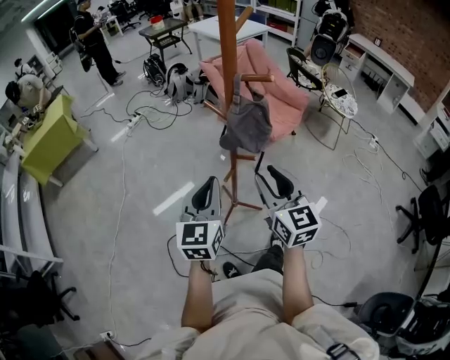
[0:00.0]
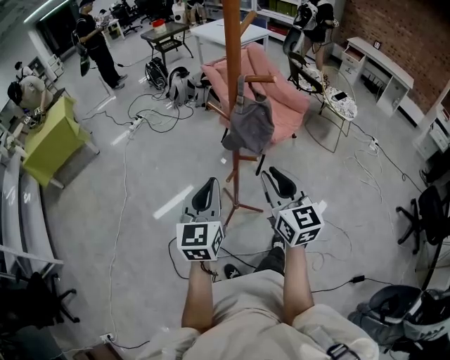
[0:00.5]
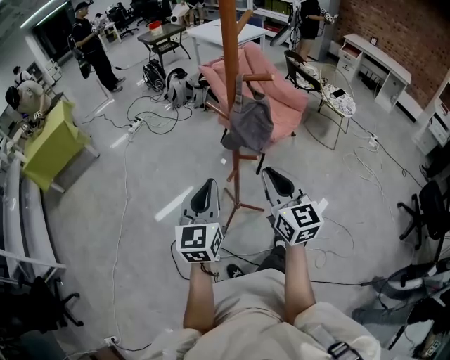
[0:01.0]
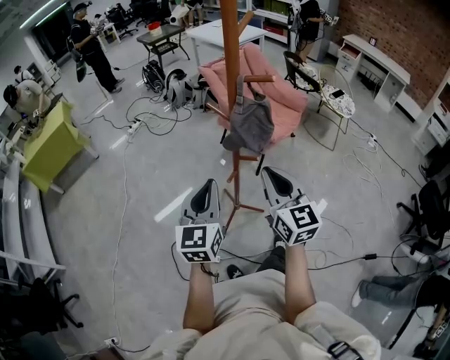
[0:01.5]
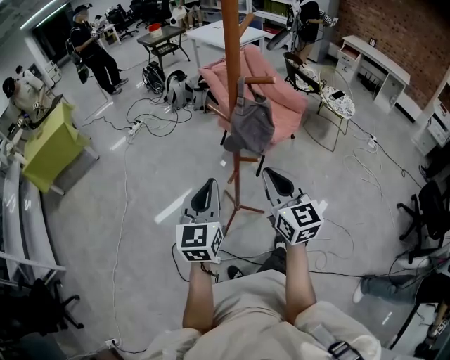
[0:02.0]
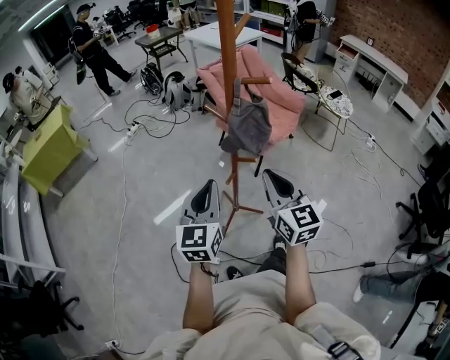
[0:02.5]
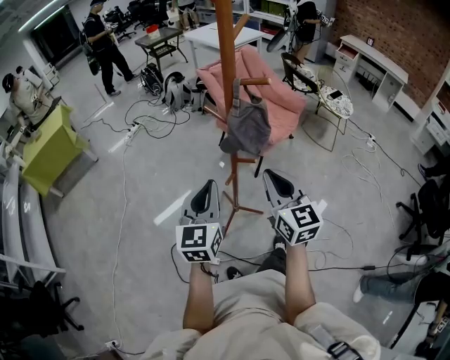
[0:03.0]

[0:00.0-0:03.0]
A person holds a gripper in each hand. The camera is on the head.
0:00.0 to 0:01.5: The right gripper closes its fingers.
0:01.5 to 0:03.0: Both grippers stay about where they are.

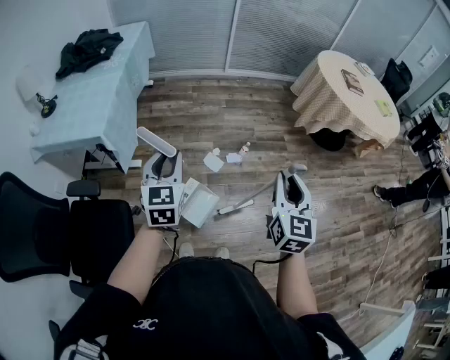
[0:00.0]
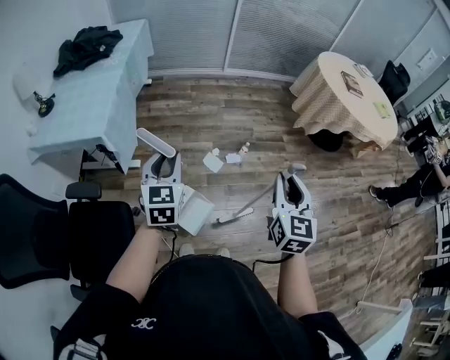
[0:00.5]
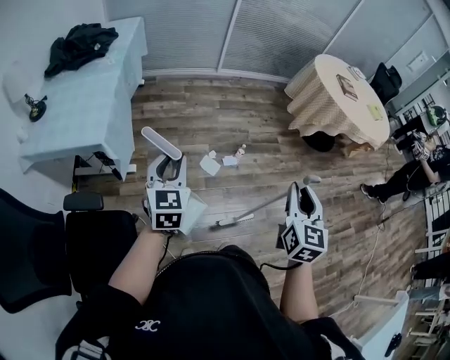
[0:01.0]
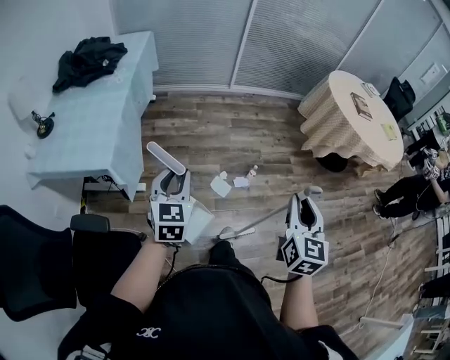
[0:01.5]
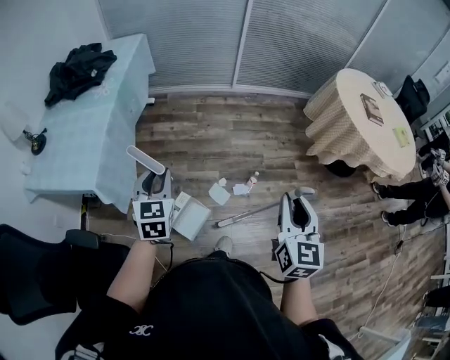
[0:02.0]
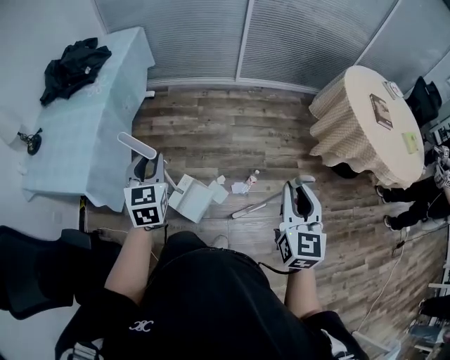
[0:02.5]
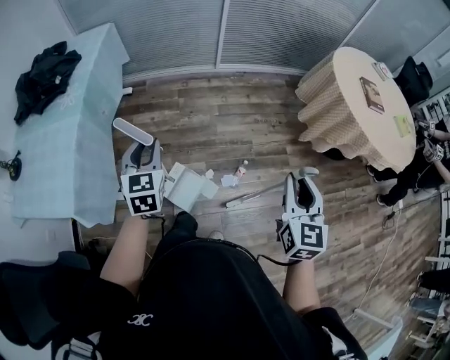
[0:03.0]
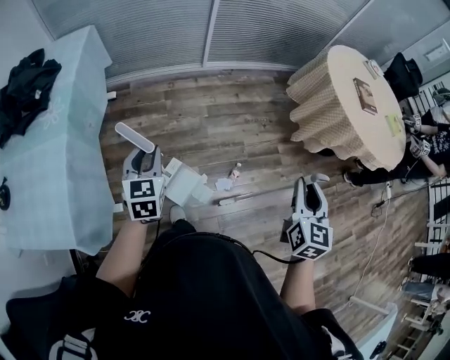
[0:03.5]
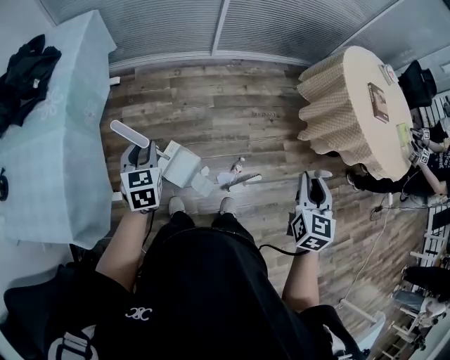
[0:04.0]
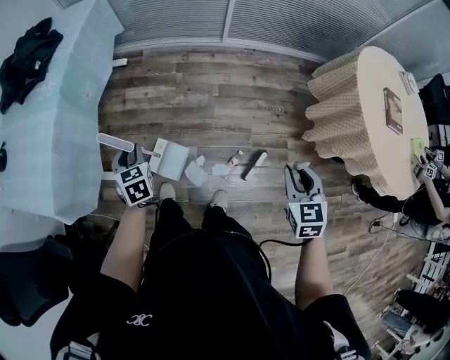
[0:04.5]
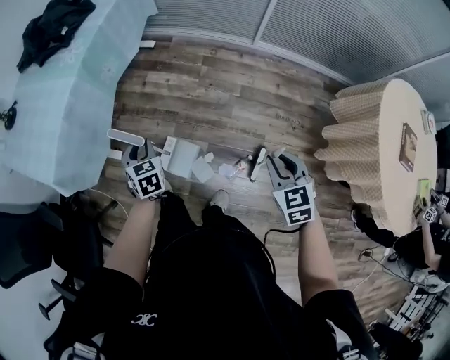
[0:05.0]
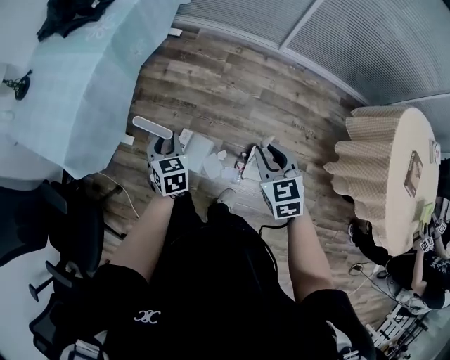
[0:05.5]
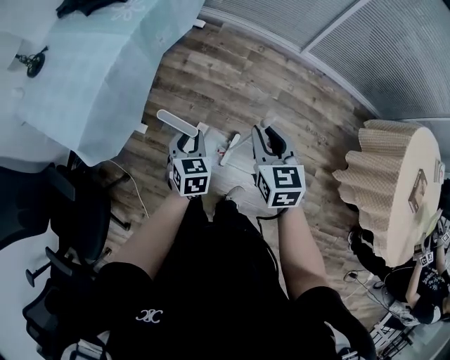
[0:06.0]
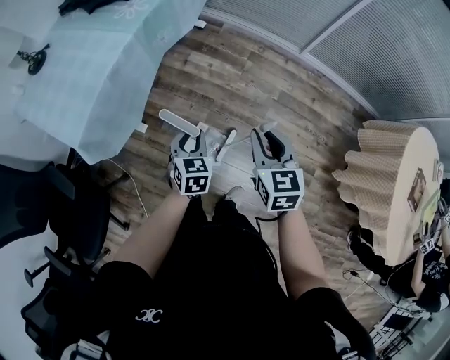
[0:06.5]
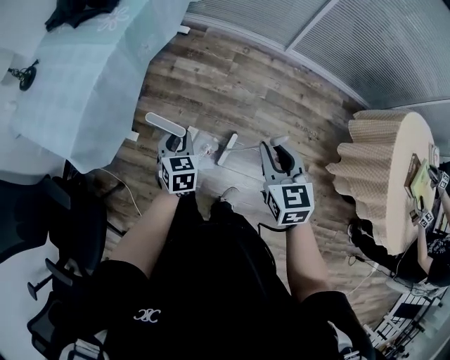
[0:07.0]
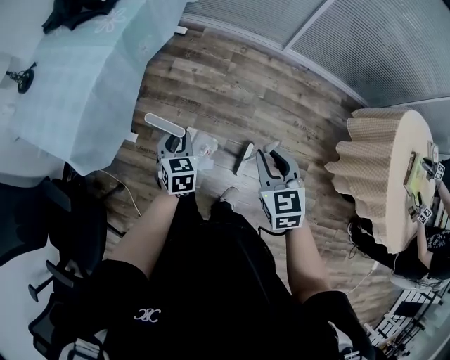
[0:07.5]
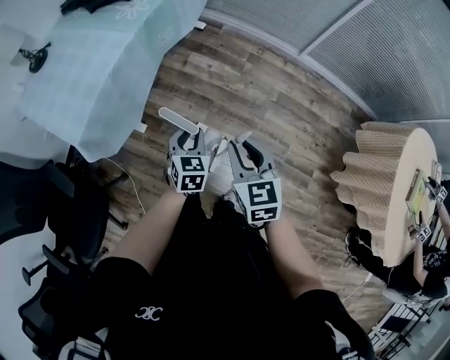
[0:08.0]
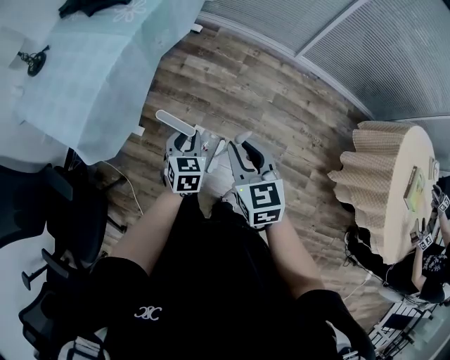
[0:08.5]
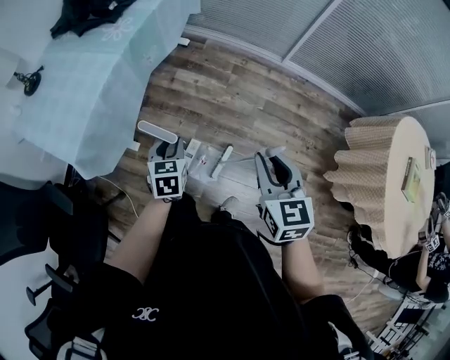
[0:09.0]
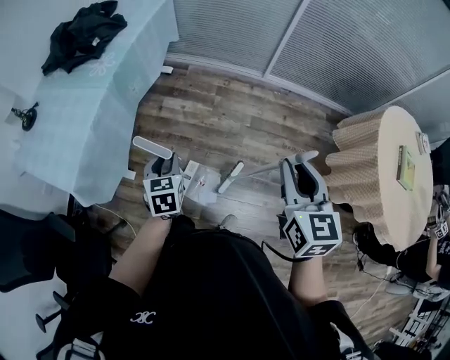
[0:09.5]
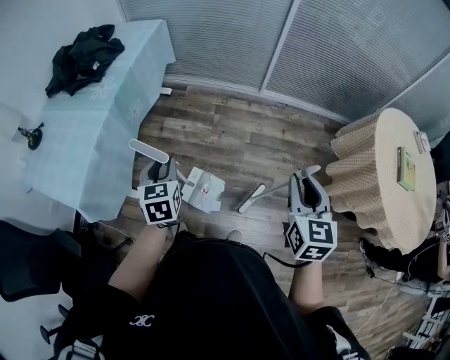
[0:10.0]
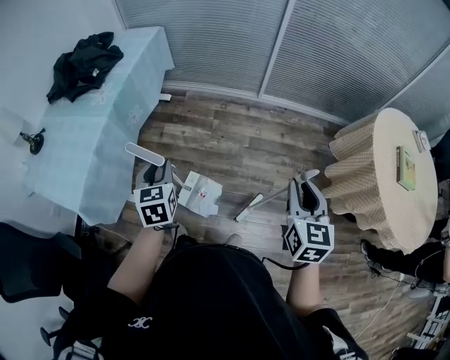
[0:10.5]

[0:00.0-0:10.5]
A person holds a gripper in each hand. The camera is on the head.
0:00.0 to 0:02.0: Both grippers move forward, approximately 20 cm.
0:02.0 to 0:04.0: The grippers both shift forward by roughly 30 cm. The right gripper rotates roughly 20 degrees.
0:04.0 to 0:06.5: The left gripper travels downward by approximately 10 cm, and turns by some 20 degrees. Meanwhile the right gripper ends up some 35 cm from where it was, and swivels approximately 50 degrees.
0:06.5 to 0:08.5: The right gripper goes some 5 cm to the left.
0:08.5 to 0:10.5: The right gripper travels to the right and upward by about 30 cm, and swivels roughly 40 degrees. Meanwhile the left gripper shifts approximately 15 cm upward.

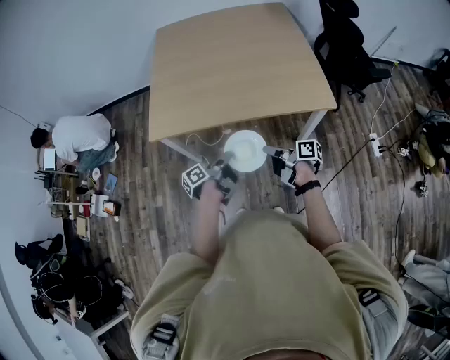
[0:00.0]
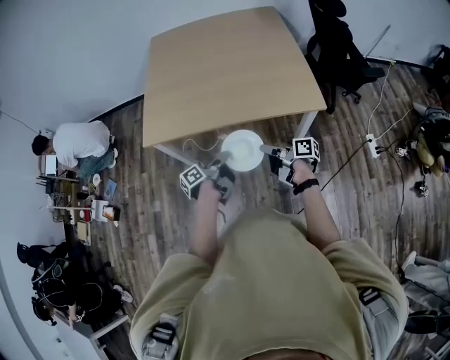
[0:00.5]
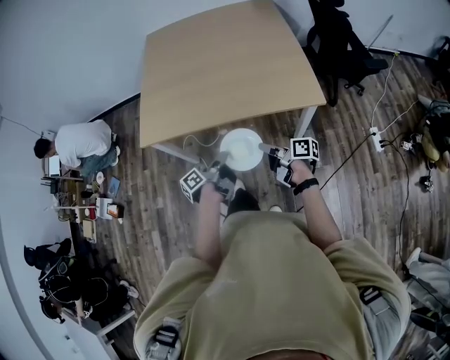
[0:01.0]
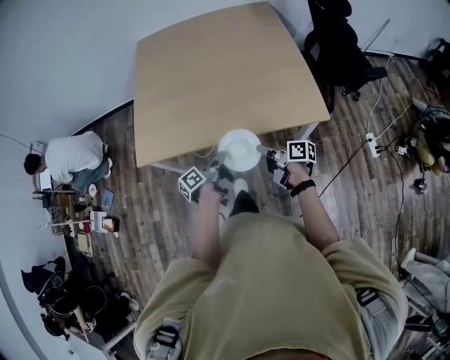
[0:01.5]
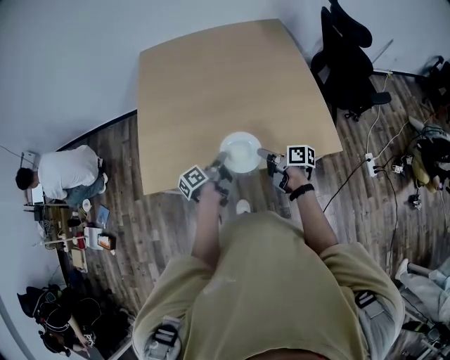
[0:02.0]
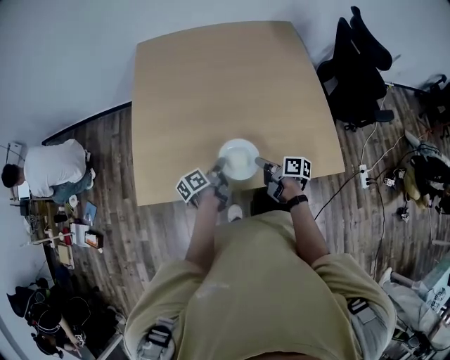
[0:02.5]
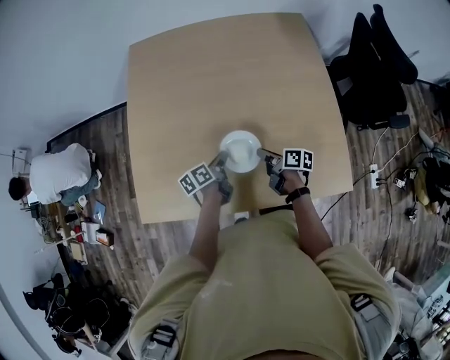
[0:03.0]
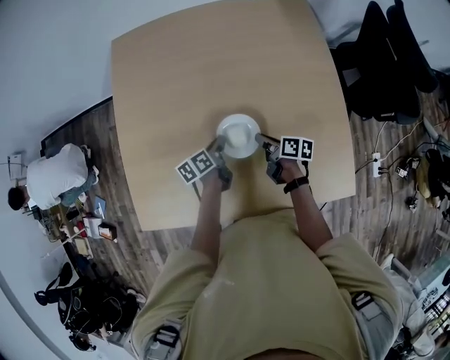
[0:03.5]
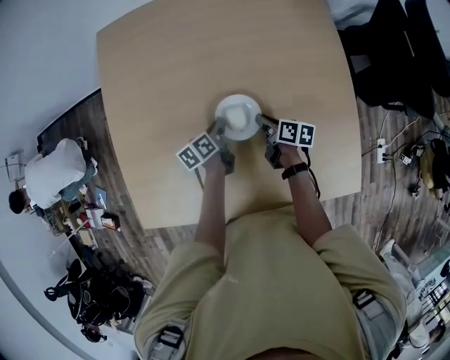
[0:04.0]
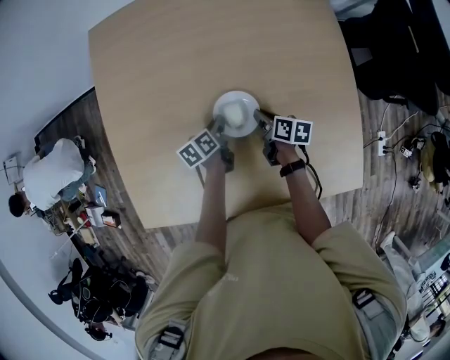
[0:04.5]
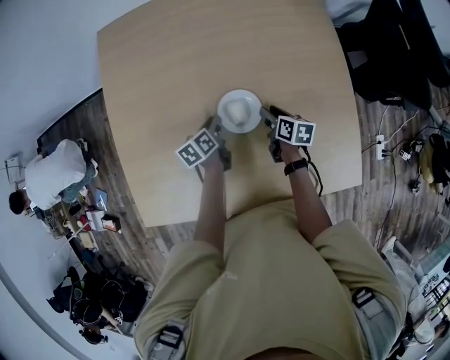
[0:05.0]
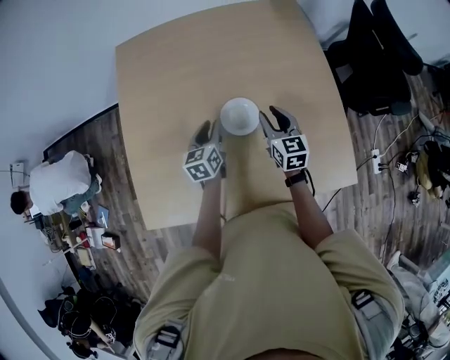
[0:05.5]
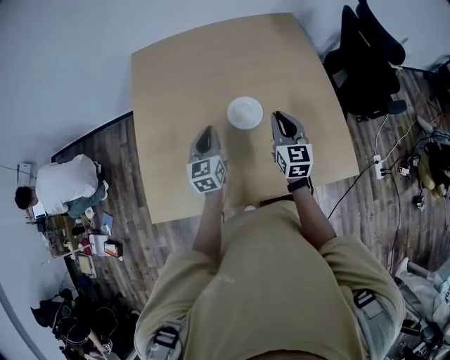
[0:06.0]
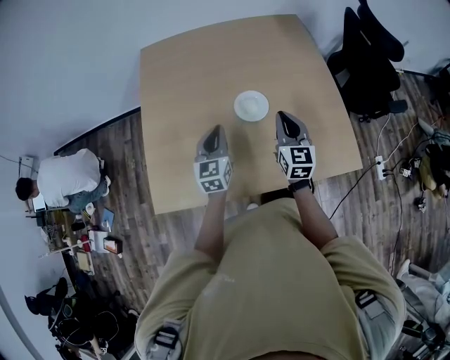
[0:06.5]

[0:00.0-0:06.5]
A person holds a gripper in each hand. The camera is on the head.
0:00.0 to 0:02.0: The two grippers go approximately 25 cm forward.
0:02.0 to 0:04.5: The left gripper is displaced forward and downward by approximately 40 cm, and rotates about 40 degrees, while the right gripper goes approximately 35 cm forward, and rotates approximately 20 degrees.
0:04.5 to 0:06.5: Both grippers travel together upward and backward, some 30 cm. The left gripper twists roughly 50 degrees clockwise, seen from behind; the right gripper swivels about 70 degrees, and opens, then closes again.

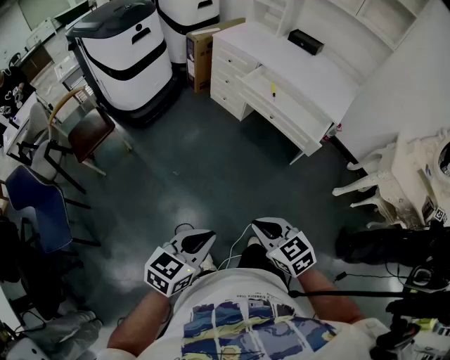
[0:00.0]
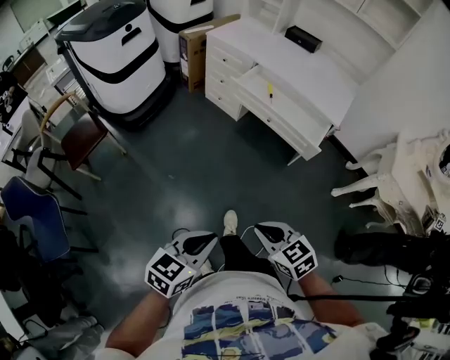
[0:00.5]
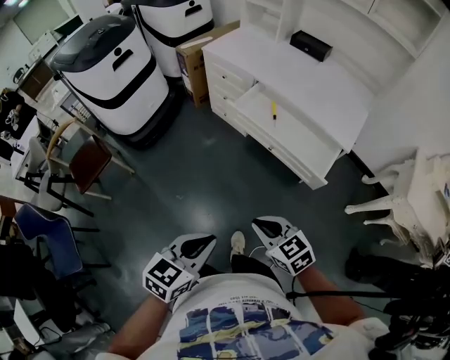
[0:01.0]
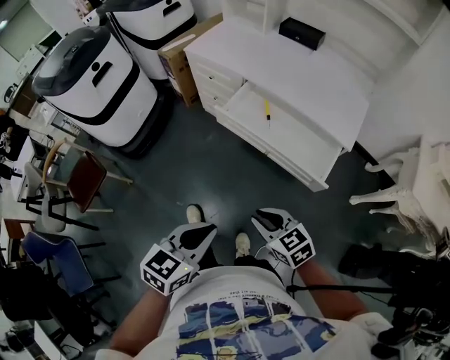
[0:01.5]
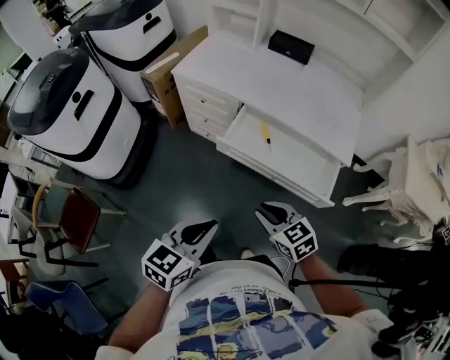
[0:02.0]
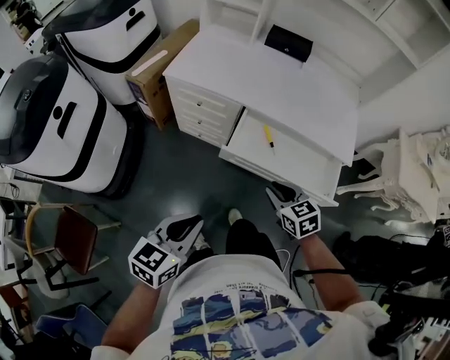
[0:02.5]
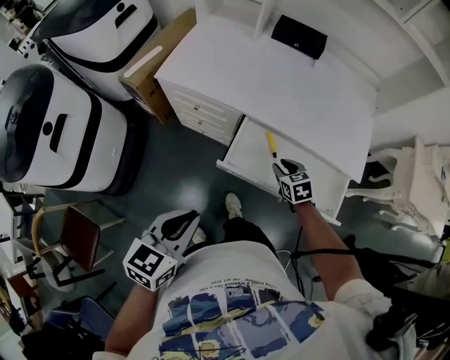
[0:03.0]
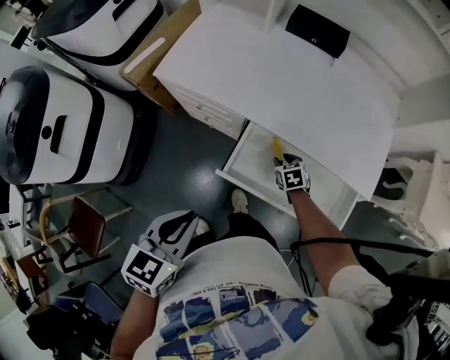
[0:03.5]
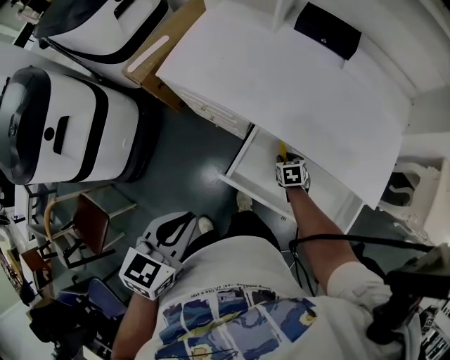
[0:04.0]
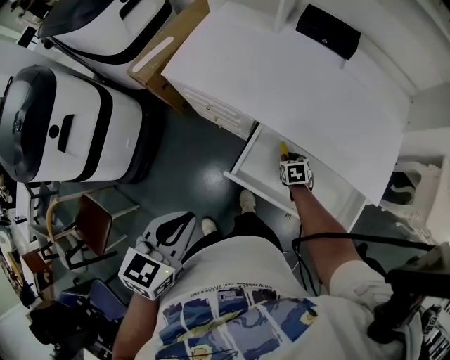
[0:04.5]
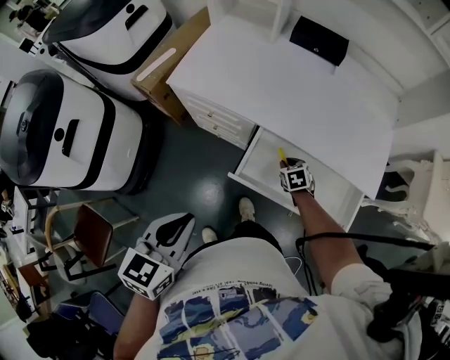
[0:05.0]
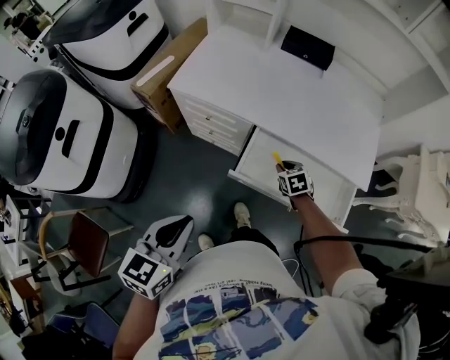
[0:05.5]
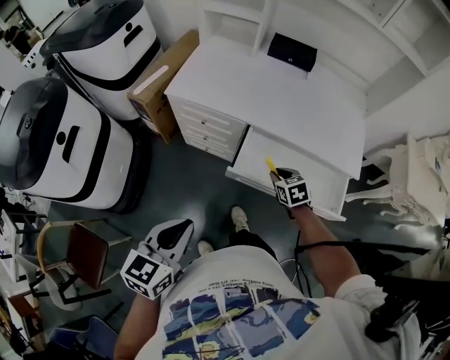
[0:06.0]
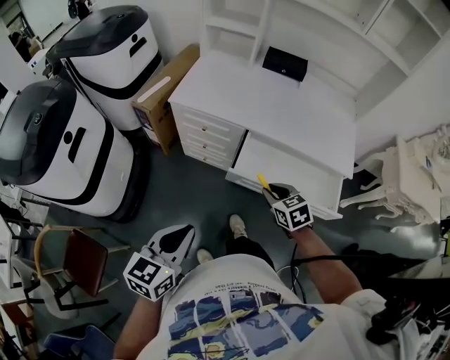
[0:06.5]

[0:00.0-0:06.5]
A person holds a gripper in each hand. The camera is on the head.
0:00.0 to 0:02.0: The pair of grippers is taken forward, some 40 cm.
0:02.0 to 0:04.5: The left gripper is displaced forward and to the left by about 25 cm. The right gripper is displaced forward and downward by about 50 cm, and rotates approximately 40 degrees.
0:04.5 to 0:06.5: The right gripper goes about 30 cm upward and backward. The left gripper goes roughly 15 cm backward and to the left.
